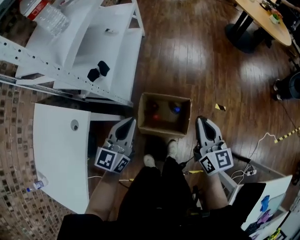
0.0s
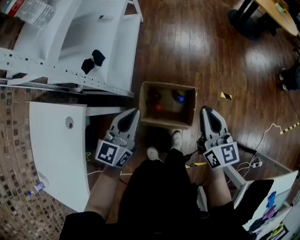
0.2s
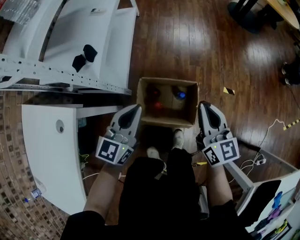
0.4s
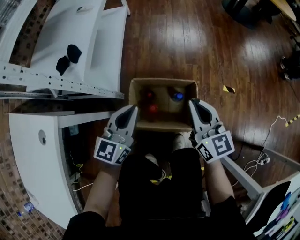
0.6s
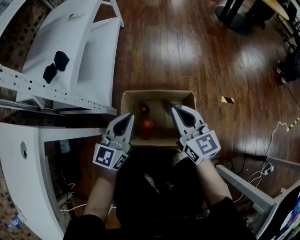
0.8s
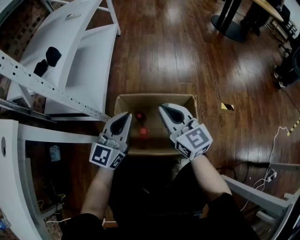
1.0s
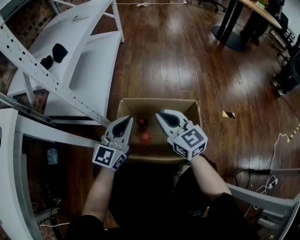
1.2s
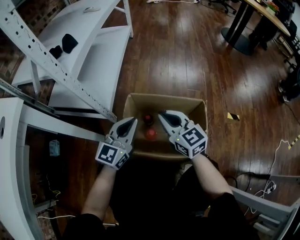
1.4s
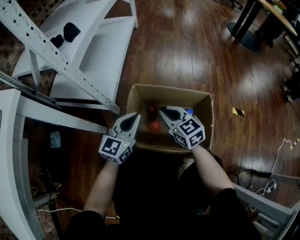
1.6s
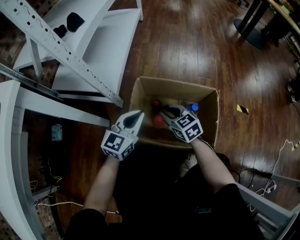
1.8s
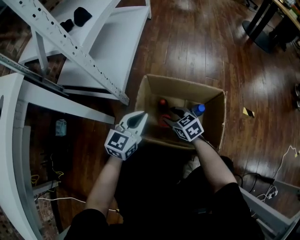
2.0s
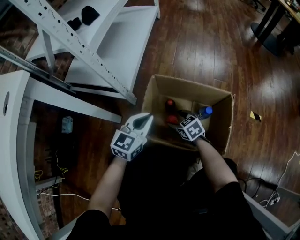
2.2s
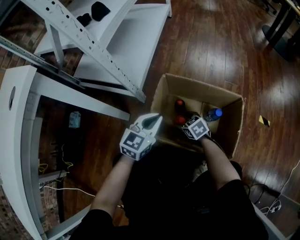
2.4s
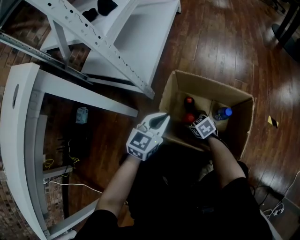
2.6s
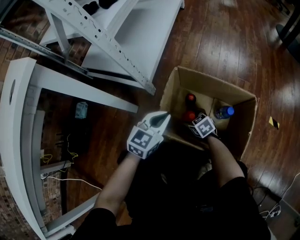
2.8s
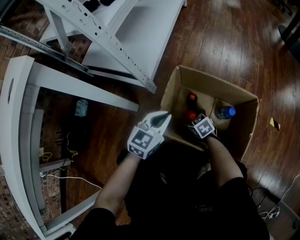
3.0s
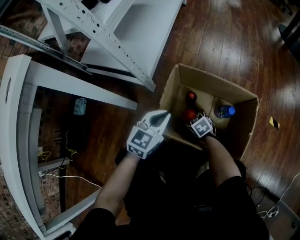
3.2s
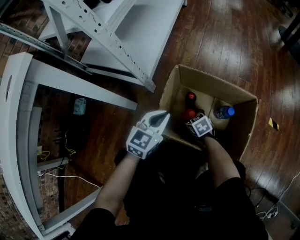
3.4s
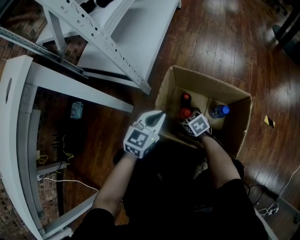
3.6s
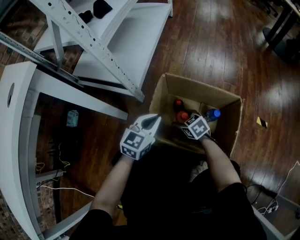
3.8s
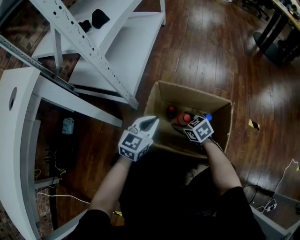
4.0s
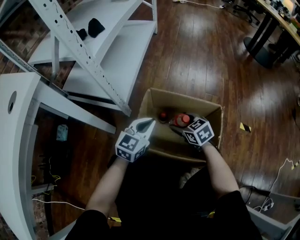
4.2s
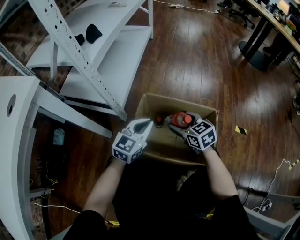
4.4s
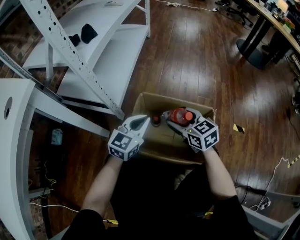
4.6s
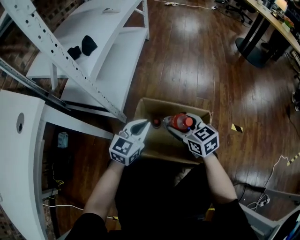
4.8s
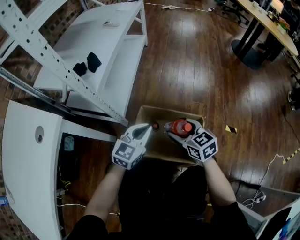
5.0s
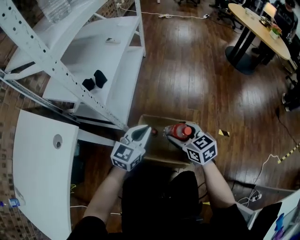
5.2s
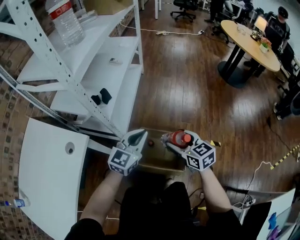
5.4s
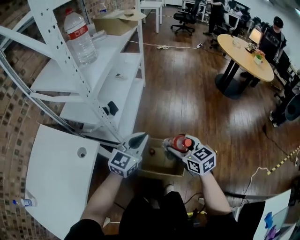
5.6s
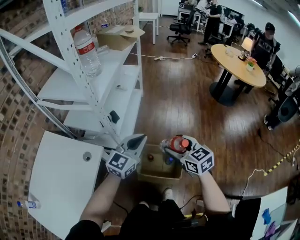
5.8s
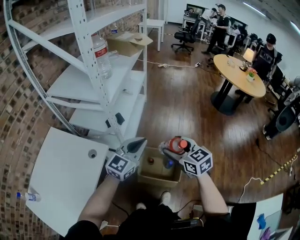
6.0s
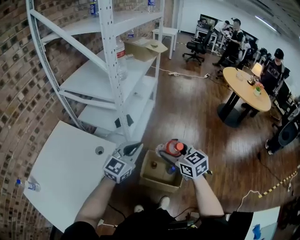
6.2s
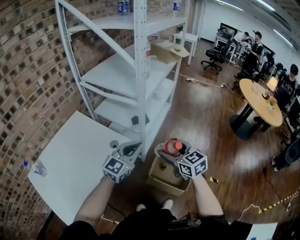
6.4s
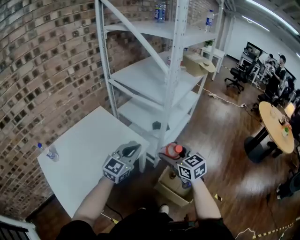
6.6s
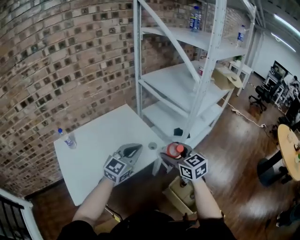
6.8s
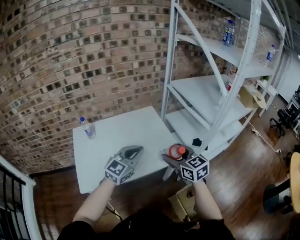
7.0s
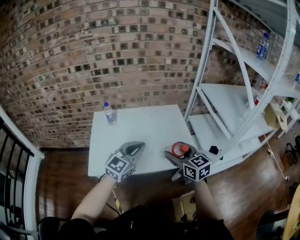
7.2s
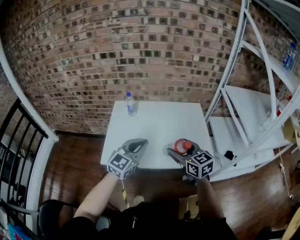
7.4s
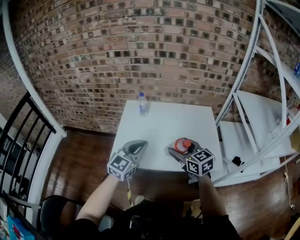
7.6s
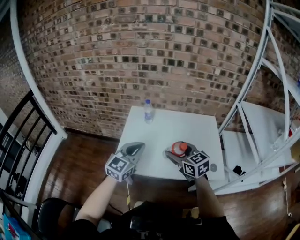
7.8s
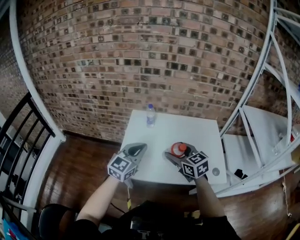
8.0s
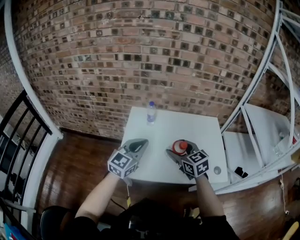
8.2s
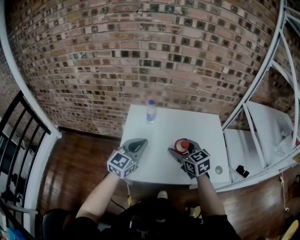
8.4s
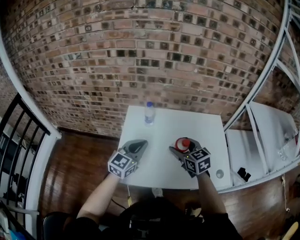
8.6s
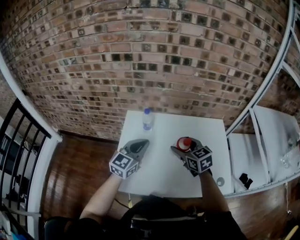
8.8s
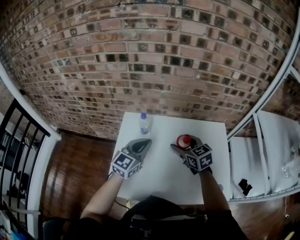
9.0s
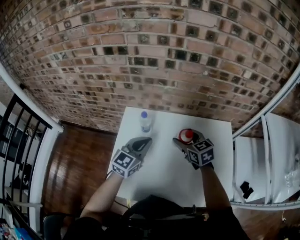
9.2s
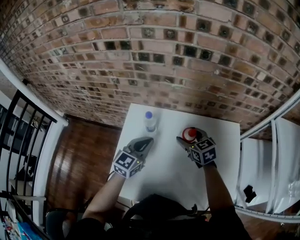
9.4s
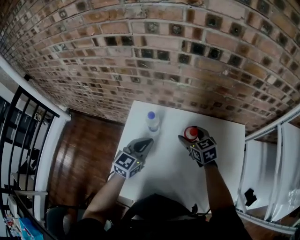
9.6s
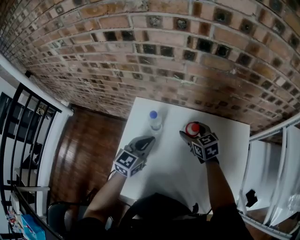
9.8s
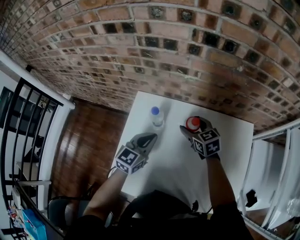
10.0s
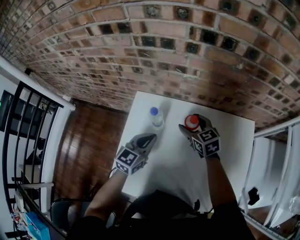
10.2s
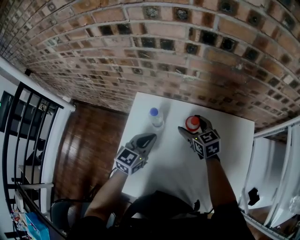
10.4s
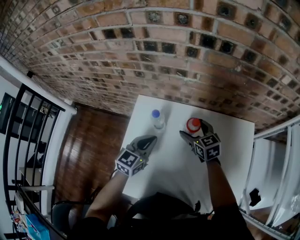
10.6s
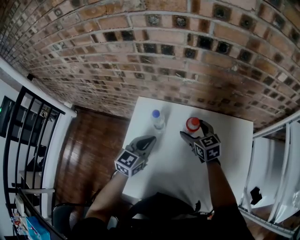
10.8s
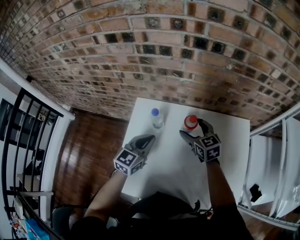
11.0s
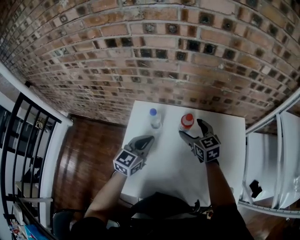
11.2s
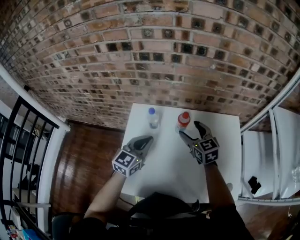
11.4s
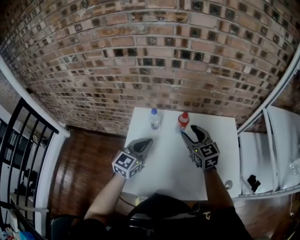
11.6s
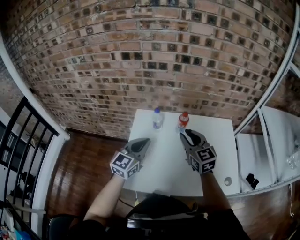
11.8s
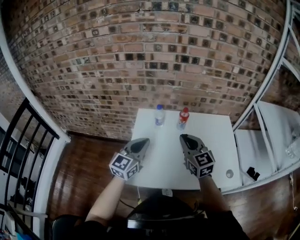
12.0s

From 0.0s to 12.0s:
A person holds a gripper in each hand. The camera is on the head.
From 0.0s to 1.6s: The grippers both shift downward by some 50 cm. The right gripper turns by approximately 30 degrees.
From 1.6s to 3.0s: The left gripper moves downward, about 10 cm. The right gripper is displaced downward by roughly 25 cm, points its fingers approximately 30 degrees further downward, and opens up.
From 3.0s to 4.4s: The left gripper is displaced upward and to the right by some 10 cm. Meanwhile the right gripper shifts approximately 25 cm upward, and changes its angle by roughly 20 degrees.
From 4.4s to 6.0s: Both grippers travel together upward, some 70 cm.
From 6.0s to 7.6s: Both grippers are carried some 60 cm. The left gripper changes its angle by approximately 80 degrees. Meanwhile the right gripper changes its angle by roughly 80 degrees.
From 7.6s to 9.0s: The grippers both shift forward by roughly 25 cm.
From 9.0s to 10.4s: The left gripper is displaced downward and forward by some 15 cm; the right gripper goes approximately 20 cm forward and downward.
From 10.4s to 12.0s: The two grippers go approximately 30 cm backward and upward. The left gripper rotates roughly 20 degrees; the right gripper turns by some 30 degrees, and closes up.

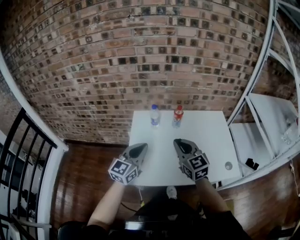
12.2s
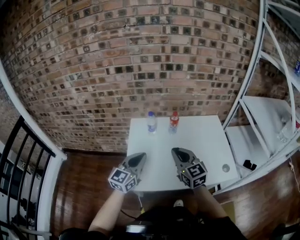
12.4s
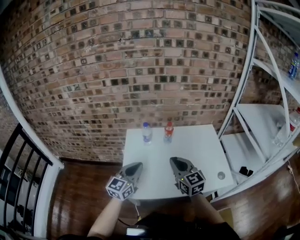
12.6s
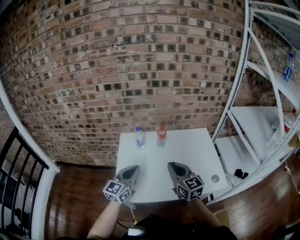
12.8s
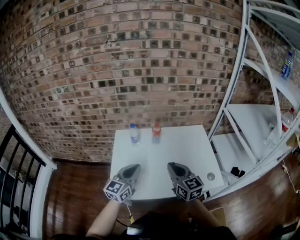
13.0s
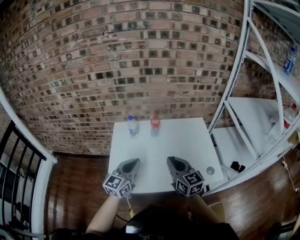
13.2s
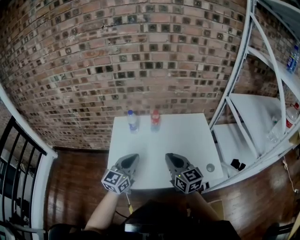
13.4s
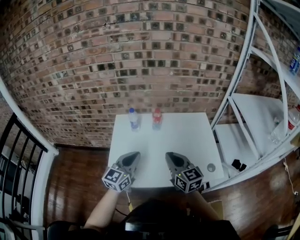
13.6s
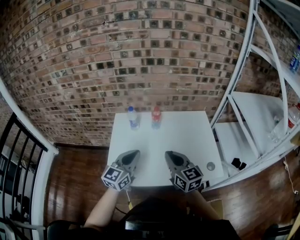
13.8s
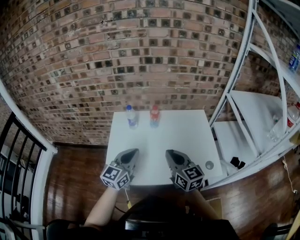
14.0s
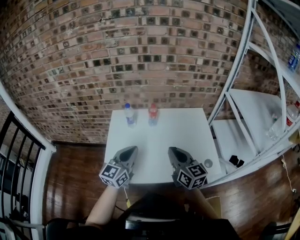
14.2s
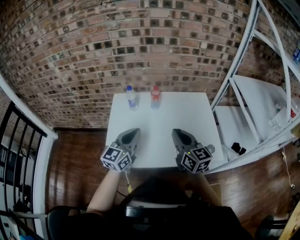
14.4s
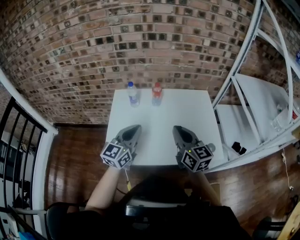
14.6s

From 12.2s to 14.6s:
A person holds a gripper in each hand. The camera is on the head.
From 12.2s to 13.4s: The grippers both shift to the right by about 10 cm.
From 13.4s to 14.6s: The grippers stay close to where they were, moving slightly.

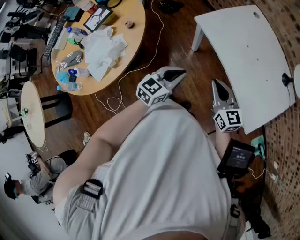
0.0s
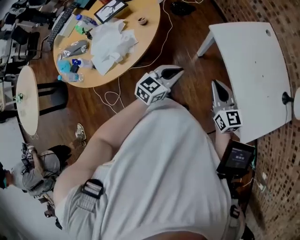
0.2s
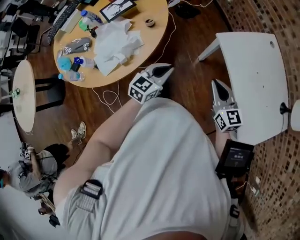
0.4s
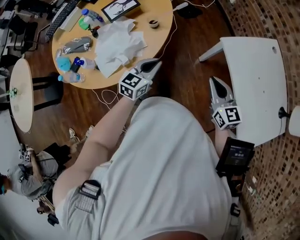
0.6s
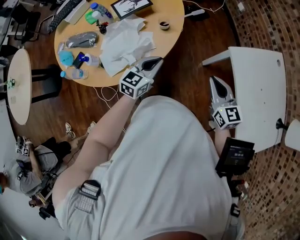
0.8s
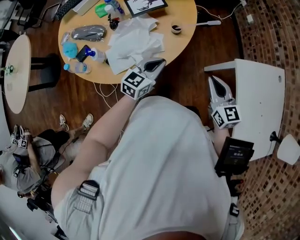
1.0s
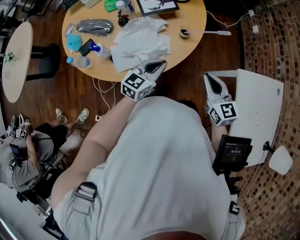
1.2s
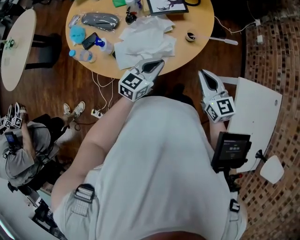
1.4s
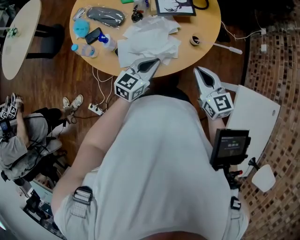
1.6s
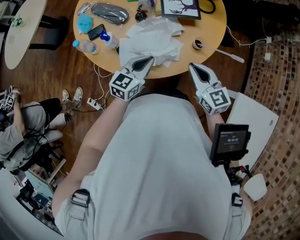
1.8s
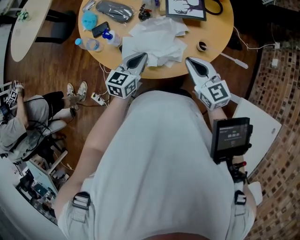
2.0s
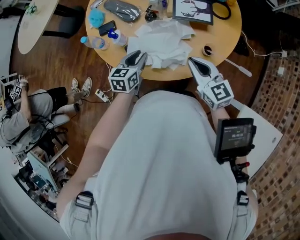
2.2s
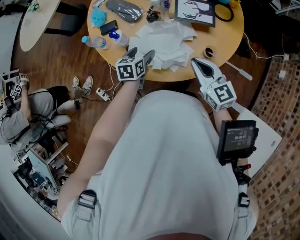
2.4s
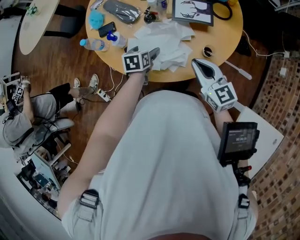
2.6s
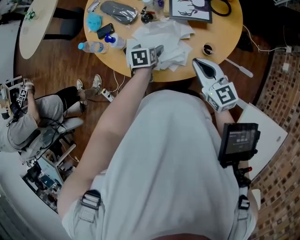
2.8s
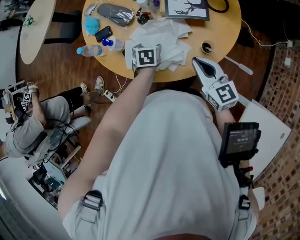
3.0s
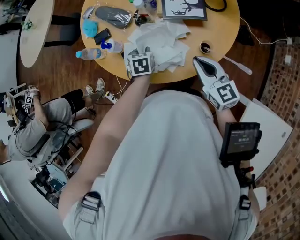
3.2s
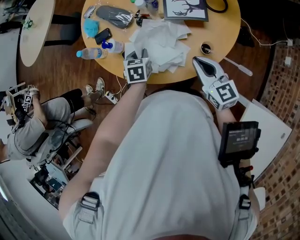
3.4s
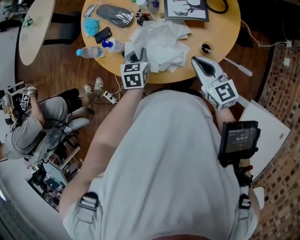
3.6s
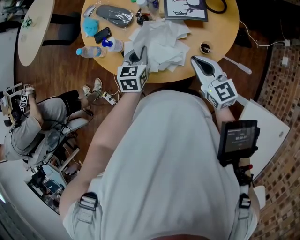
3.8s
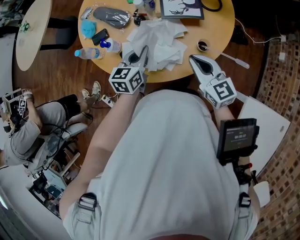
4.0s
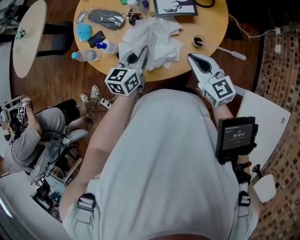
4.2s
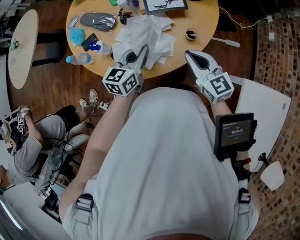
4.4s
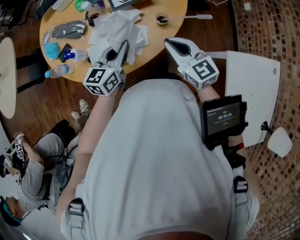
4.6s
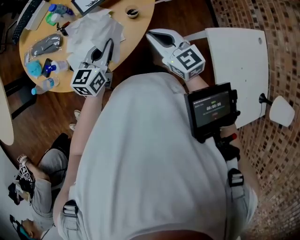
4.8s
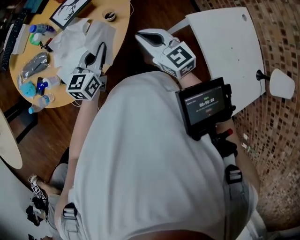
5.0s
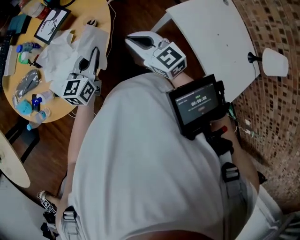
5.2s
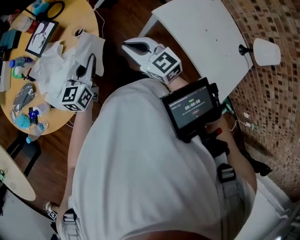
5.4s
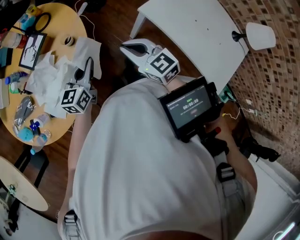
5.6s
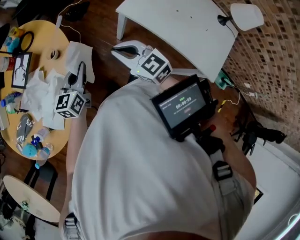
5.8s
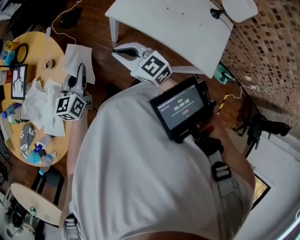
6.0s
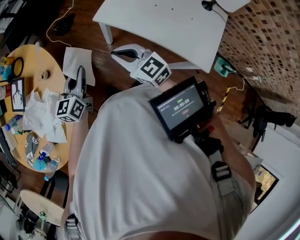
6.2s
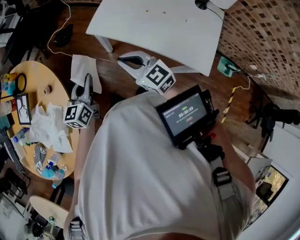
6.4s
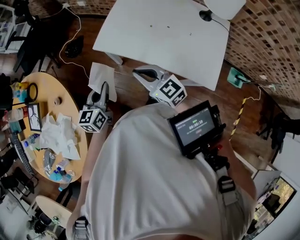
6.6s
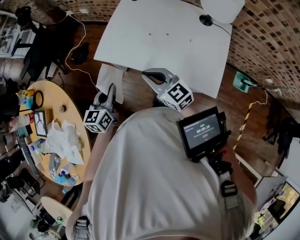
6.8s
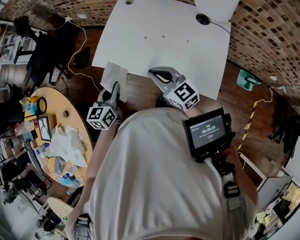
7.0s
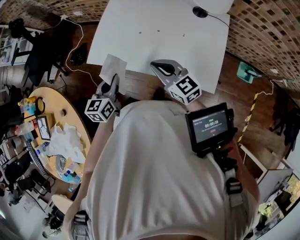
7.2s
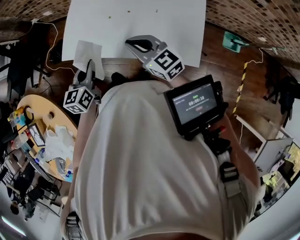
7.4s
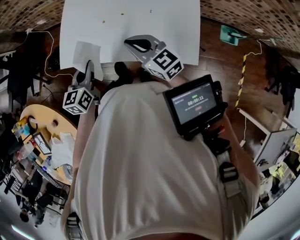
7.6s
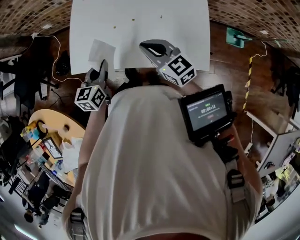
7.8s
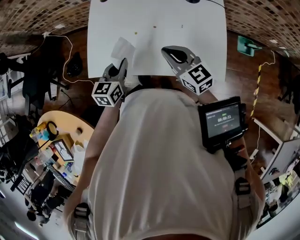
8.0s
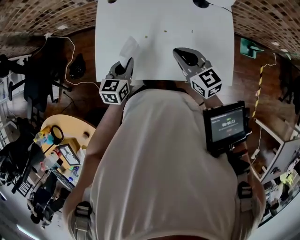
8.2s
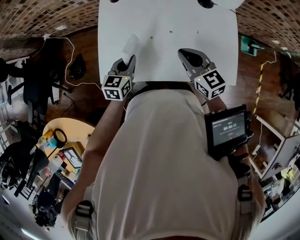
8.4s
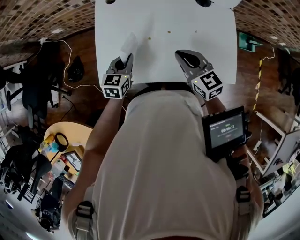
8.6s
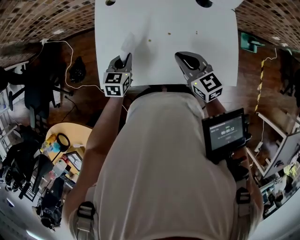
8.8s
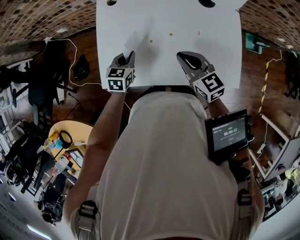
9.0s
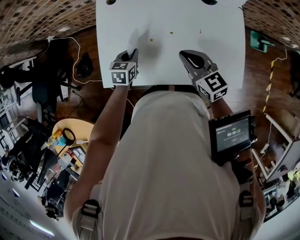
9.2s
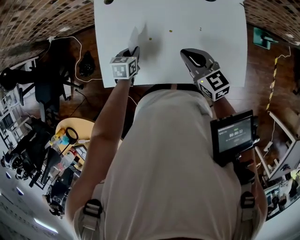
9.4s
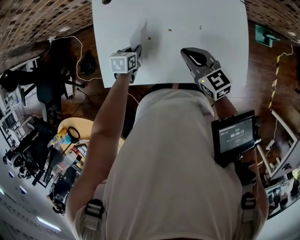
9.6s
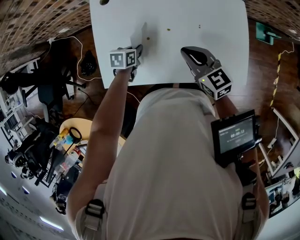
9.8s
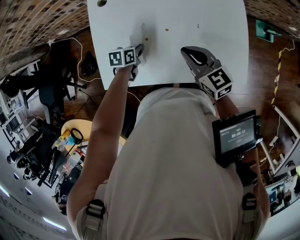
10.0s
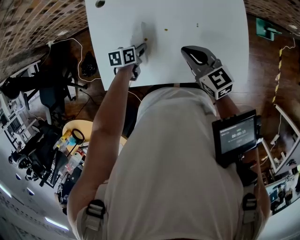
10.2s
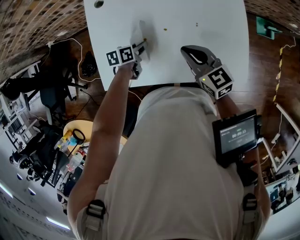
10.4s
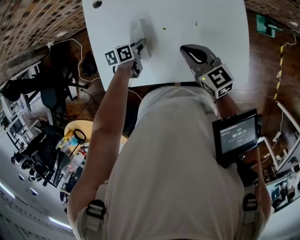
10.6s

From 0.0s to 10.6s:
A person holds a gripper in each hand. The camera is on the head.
From 0.0s to 1.6s: The two grippers travel together, roughly 40 cm. The right gripper changes its angle by about 50 degrees, while the left gripper swivels some 50 degrees.
From 1.6s to 3.0s: The right gripper shifts by some 10 cm, while the left gripper is displaced downward by about 15 cm, angles its fingers downward, by roughly 50 degrees, and opens its fingers.
From 3.0s to 4.6s: The left gripper travels upward by roughly 15 cm, tips its fingers upward by roughly 50 degrees, and closes its fingers. Meanwhile the right gripper changes place by some 5 cm.
From 4.6s to 6.0s: The right gripper ends up some 25 cm from where it was, and rotates some 40 degrees; the left gripper moves some 25 cm, and turns by about 40 degrees.
From 6.0s to 7.6s: The left gripper changes place by about 35 cm, and swivels approximately 30 degrees, while the right gripper changes place by some 40 cm, and swivels approximately 30 degrees.
From 7.6s to 9.0s: The right gripper heads forward, covering some 10 cm; the left gripper is displaced forward and downward by some 20 cm, and turns by approximately 30 degrees.
From 9.0s to 10.6s: The left gripper shifts approximately 10 cm to the right and downward, and turns by some 40 degrees; the right gripper moves about 5 cm.
